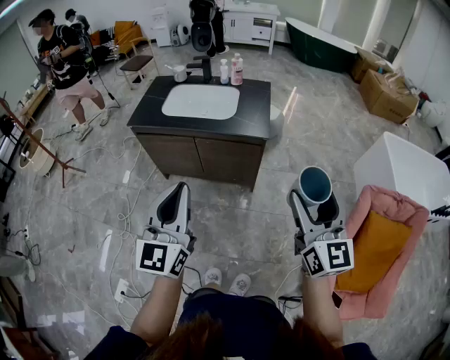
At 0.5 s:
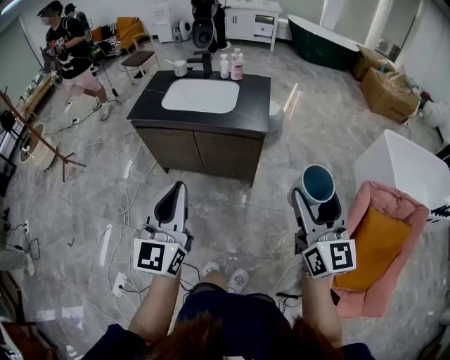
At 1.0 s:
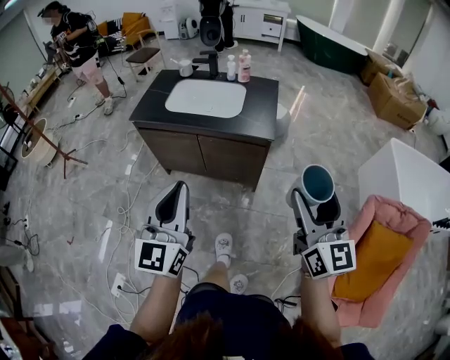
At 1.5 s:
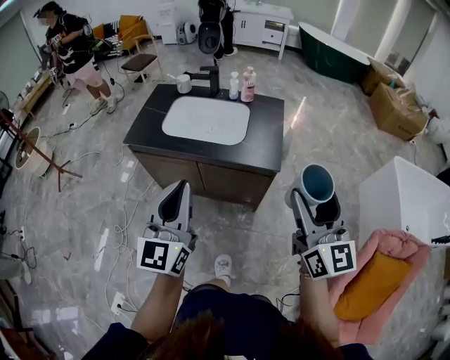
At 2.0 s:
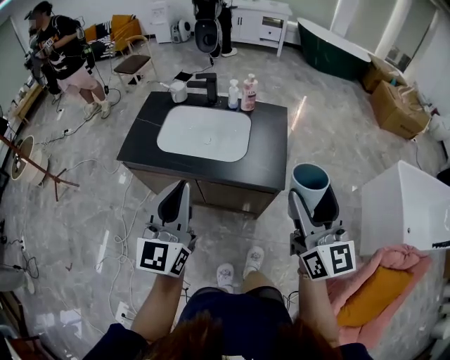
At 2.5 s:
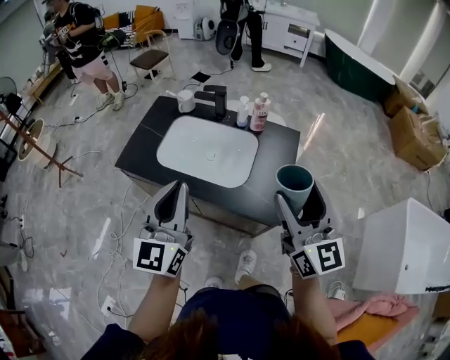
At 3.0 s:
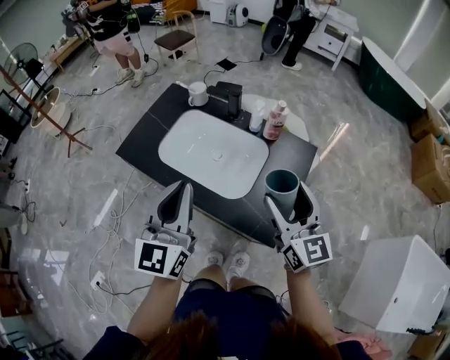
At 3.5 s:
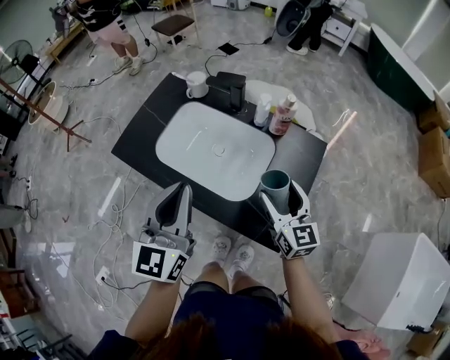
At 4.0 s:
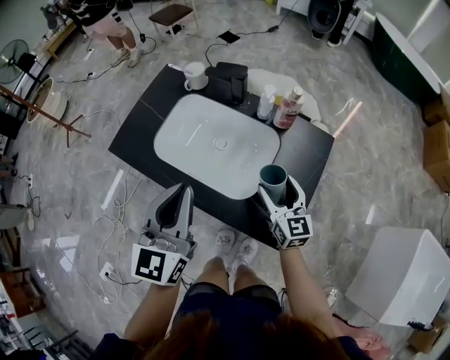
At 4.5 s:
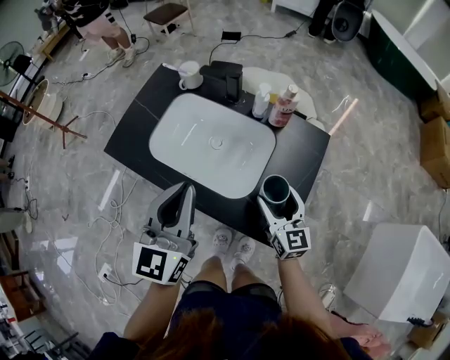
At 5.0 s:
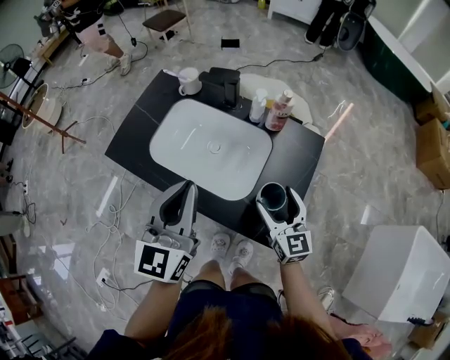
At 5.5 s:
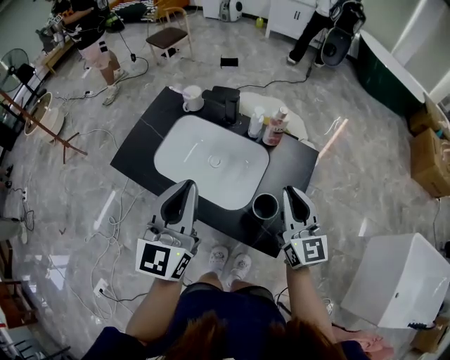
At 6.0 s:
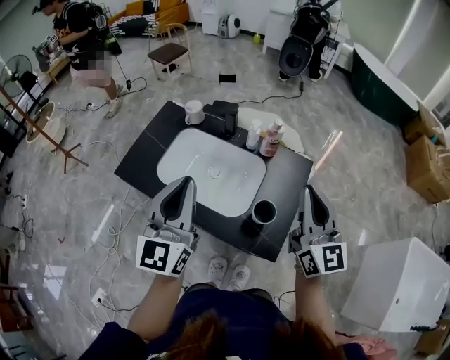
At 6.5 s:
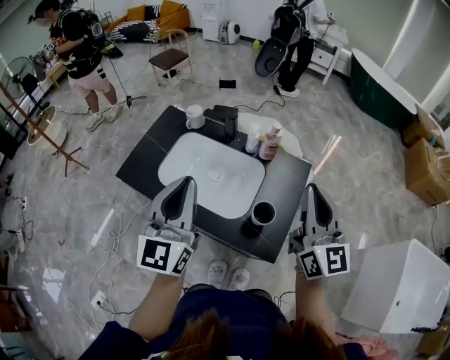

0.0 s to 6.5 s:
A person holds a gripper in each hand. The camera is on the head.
0.0 to 2.0 s: Both grippers travel together forward, about 30 cm.
2.0 to 4.5 s: The right gripper is displaced forward and downward by some 50 cm, and swivels approximately 30 degrees, while the left gripper shifts about 25 cm forward.
4.5 to 6.5 s: The right gripper moves upward, some 30 cm, rotates about 30 degrees, and closes. The left gripper is displaced upward by approximately 10 cm.

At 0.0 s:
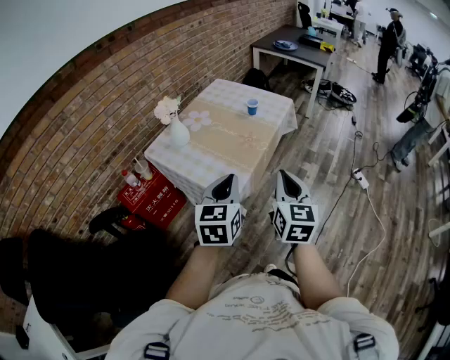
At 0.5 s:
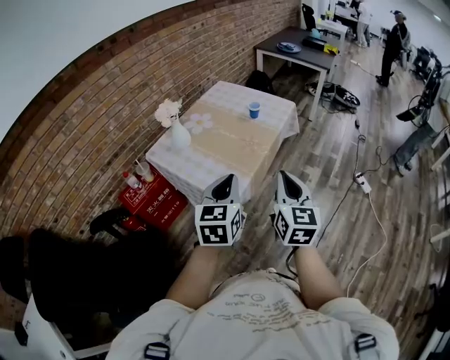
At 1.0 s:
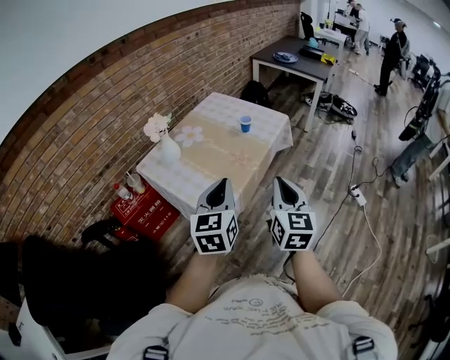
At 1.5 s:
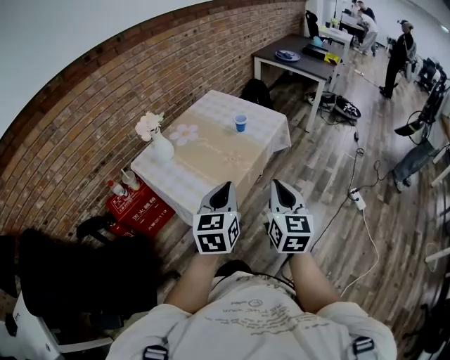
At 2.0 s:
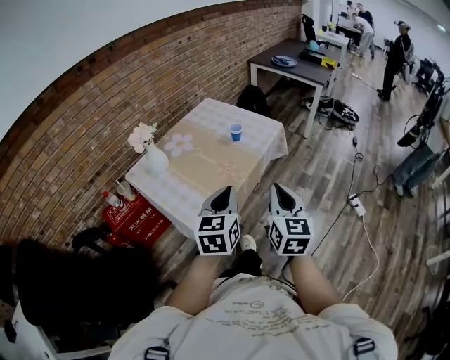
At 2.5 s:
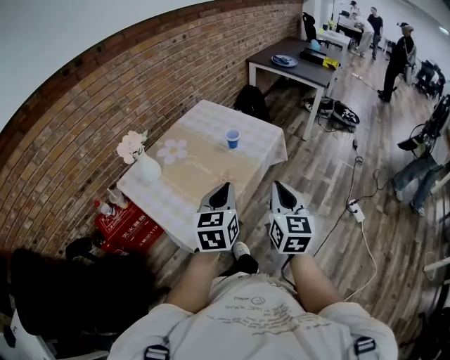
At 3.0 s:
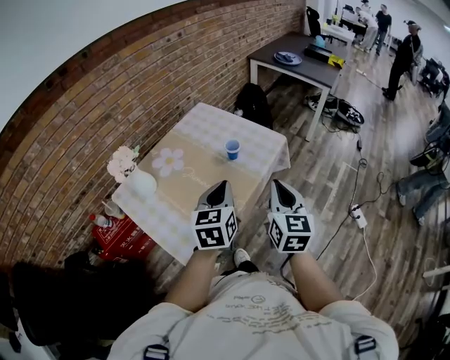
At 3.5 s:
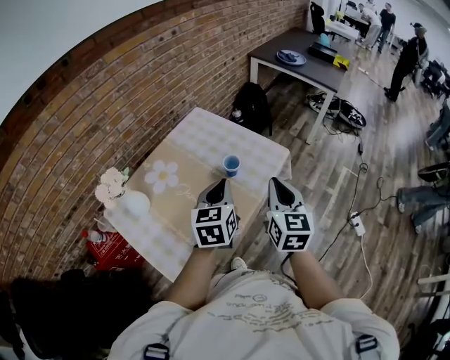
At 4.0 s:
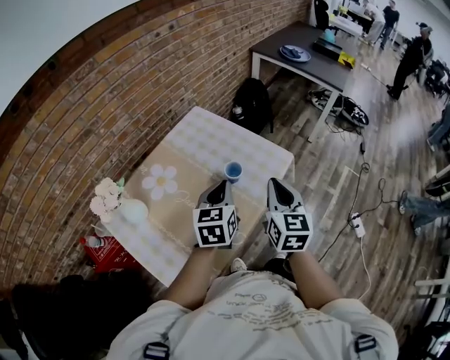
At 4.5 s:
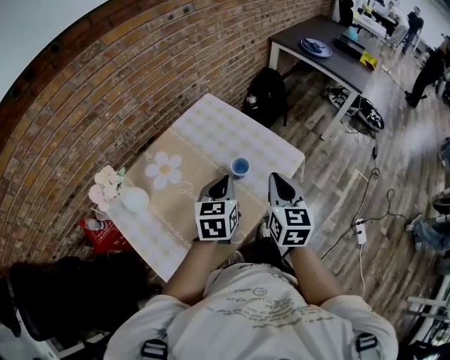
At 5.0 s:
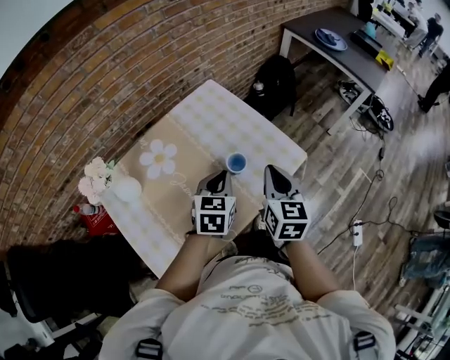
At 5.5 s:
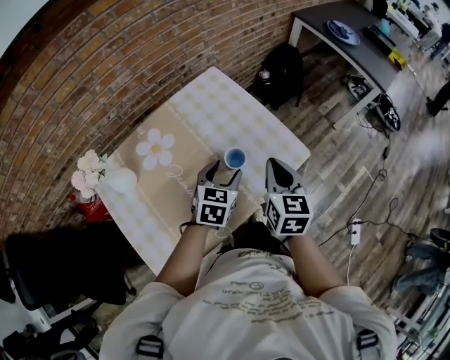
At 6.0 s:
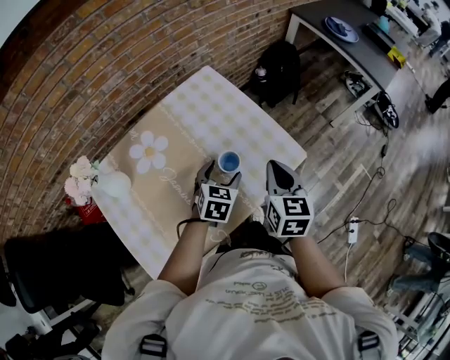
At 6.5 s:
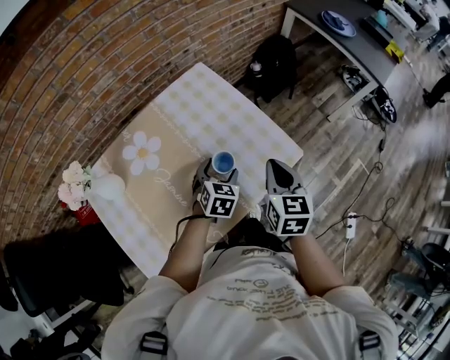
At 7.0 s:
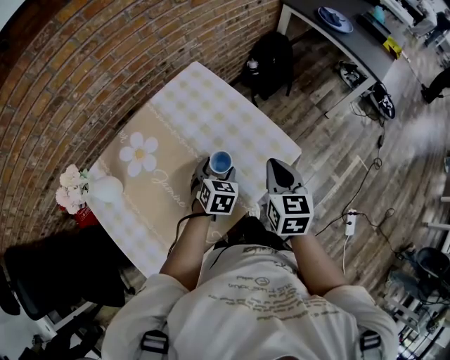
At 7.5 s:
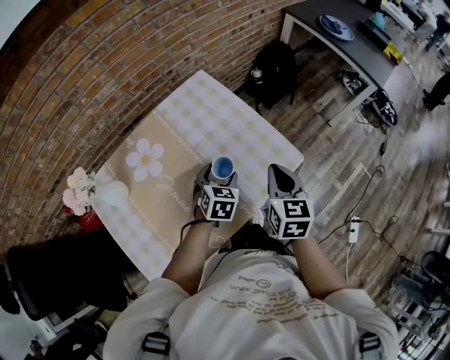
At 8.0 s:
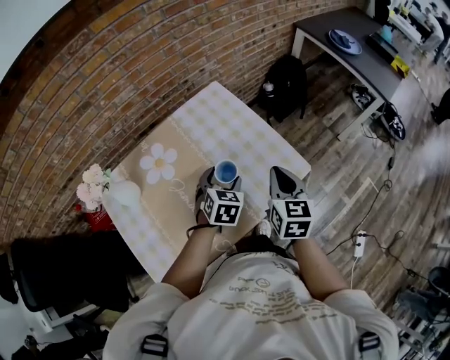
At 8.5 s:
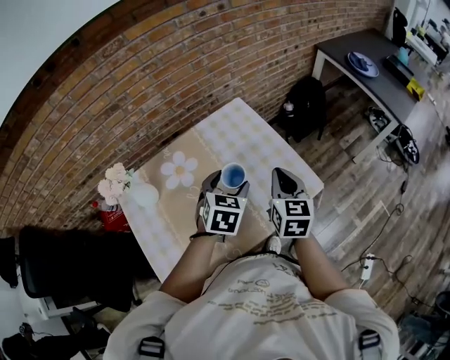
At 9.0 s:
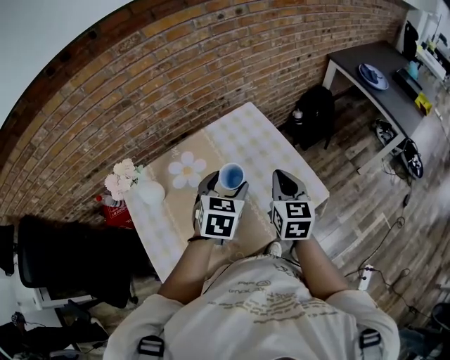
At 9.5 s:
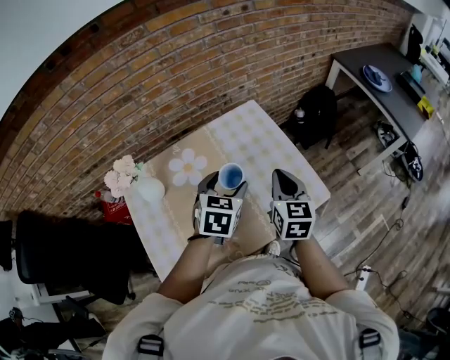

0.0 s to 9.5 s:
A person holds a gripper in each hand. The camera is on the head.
0.0 to 2.0 s: The grippers both shift forward and to the right by some 15 cm.
2.0 to 4.0 s: The grippers both shift forward by approximately 40 cm.
4.0 to 5.5 s: The left gripper is displaced downward and forward by some 15 cm, and opens. Meanwhile the right gripper heads forward and downward, covering some 15 cm.
5.5 to 7.5 s: The left gripper moves downward, about 5 cm, while the right gripper changes place by about 5 cm.
7.5 to 9.5 s: The left gripper heads upward and to the left, covering about 20 cm. Meanwhile the right gripper heads to the left and upward, covering approximately 10 cm.

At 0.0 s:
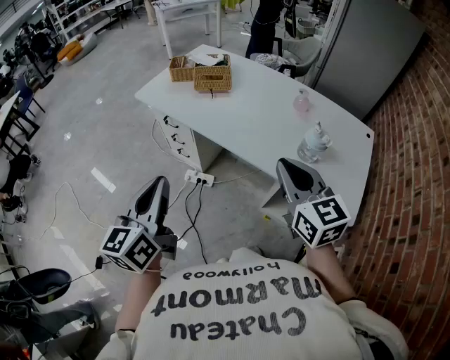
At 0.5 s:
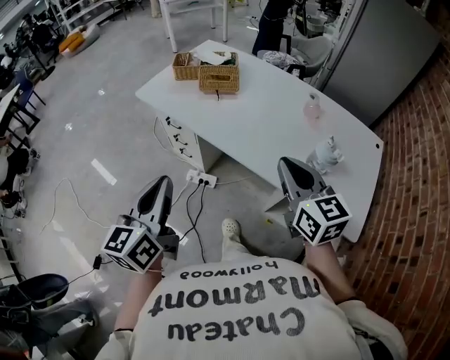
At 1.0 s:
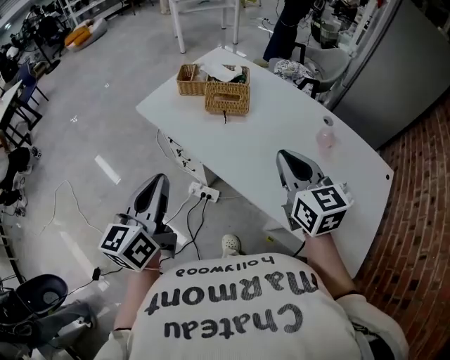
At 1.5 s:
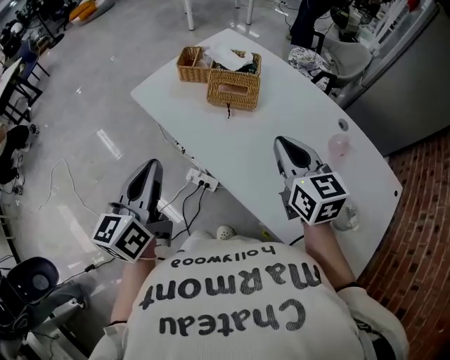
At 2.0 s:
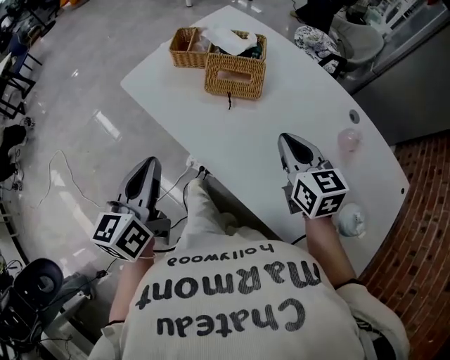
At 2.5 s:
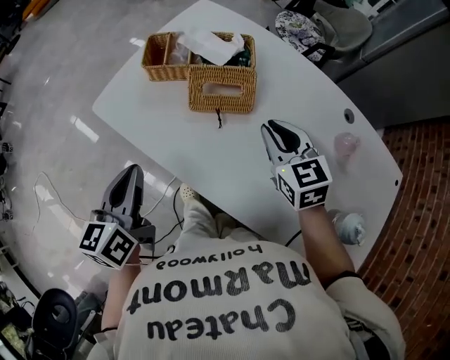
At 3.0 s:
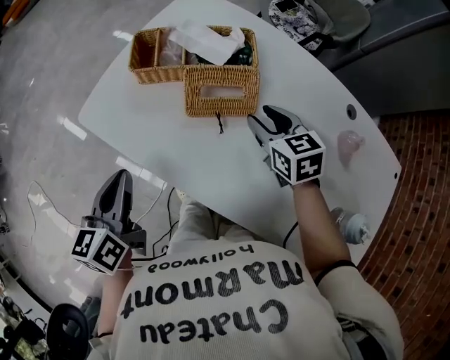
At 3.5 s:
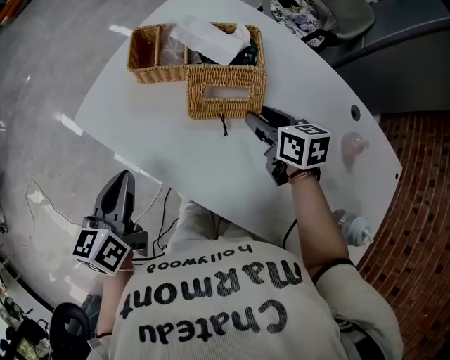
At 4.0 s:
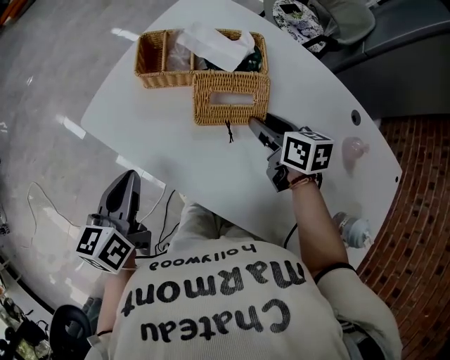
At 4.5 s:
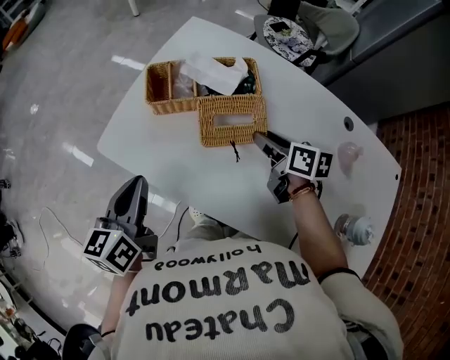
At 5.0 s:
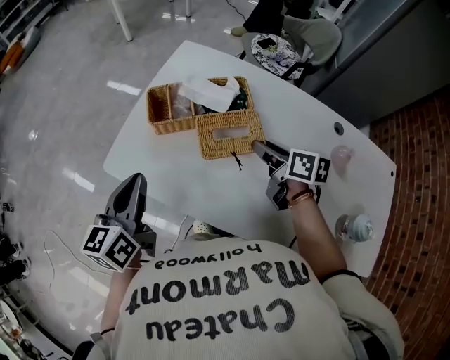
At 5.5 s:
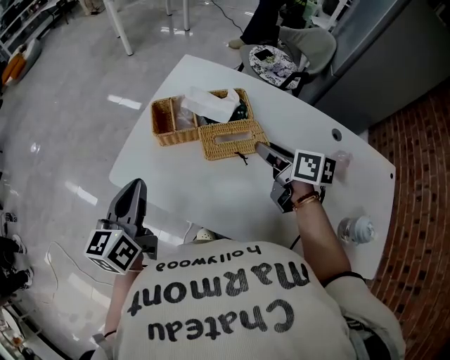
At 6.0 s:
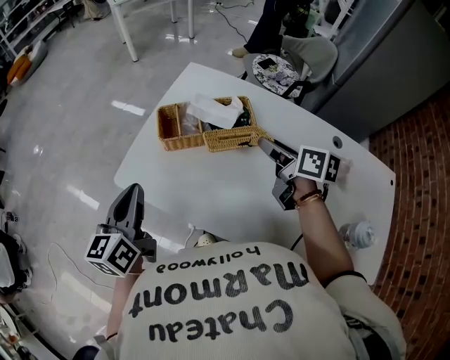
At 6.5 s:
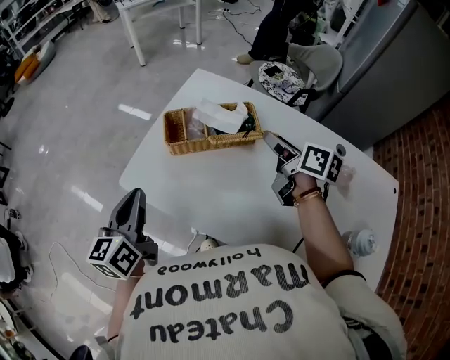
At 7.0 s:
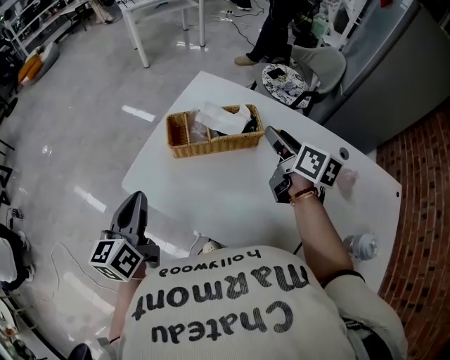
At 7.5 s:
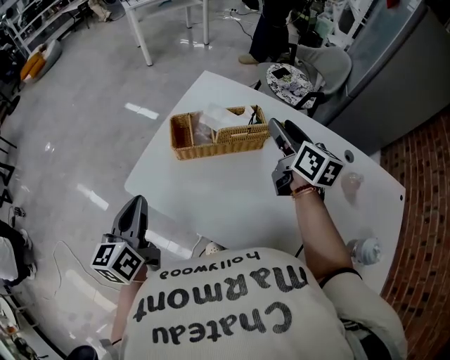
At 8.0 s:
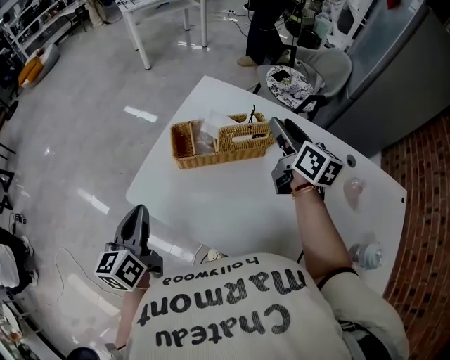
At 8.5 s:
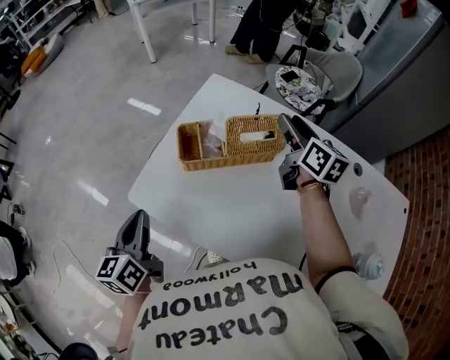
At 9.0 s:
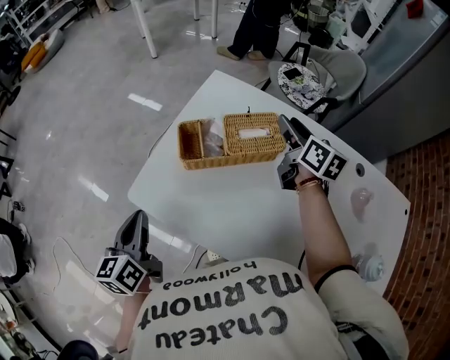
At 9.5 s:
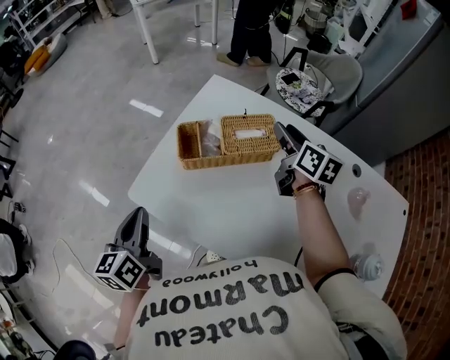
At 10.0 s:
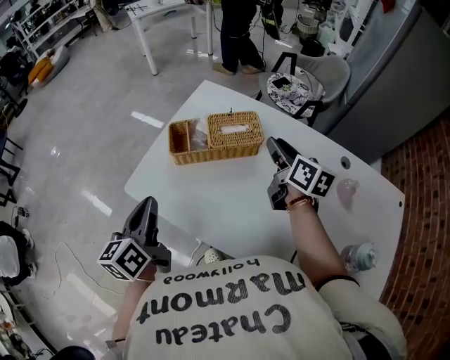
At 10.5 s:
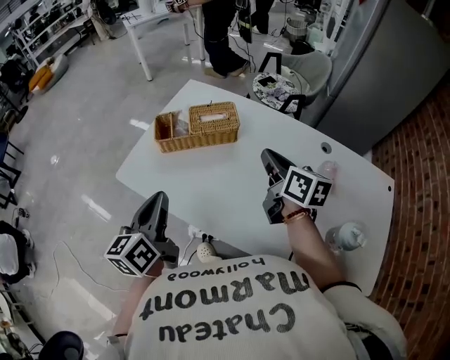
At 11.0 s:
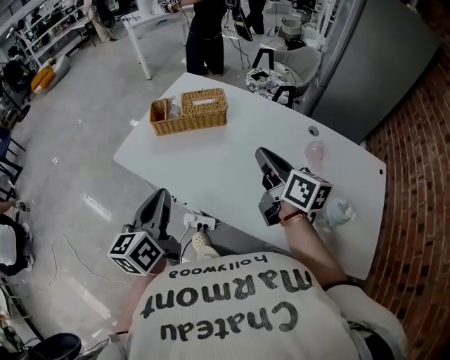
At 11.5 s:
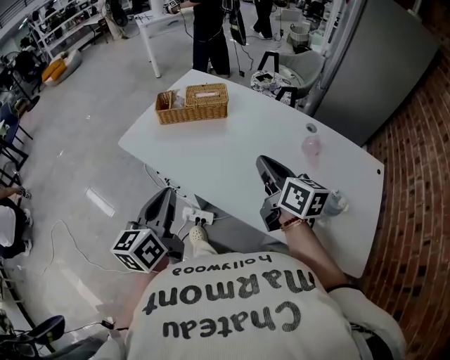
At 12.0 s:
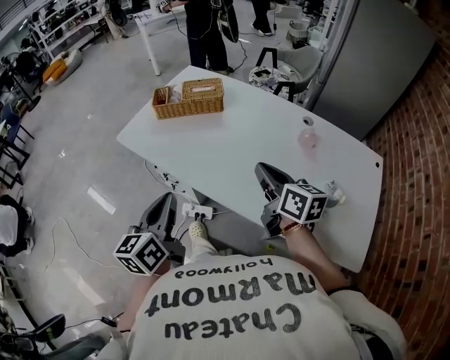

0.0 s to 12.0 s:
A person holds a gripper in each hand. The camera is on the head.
0.0 to 2.0 s: Both grippers move forward, about 35 cm.
2.0 to 4.0 s: The grippers both shift forward and downward by approximately 20 cm. The right gripper rotates roughly 30 degrees, and opens its fingers.
4.0 to 6.0 s: The left gripper shifts approximately 10 cm upward and forward. The right gripper shifts approximately 15 cm upward, and changes its angle by some 20 degrees.
6.0 to 8.0 s: The right gripper goes roughly 10 cm forward, and swivels some 20 degrees.
8.0 to 10.0 s: The left gripper travels to the right by some 5 cm; the right gripper shifts some 5 cm backward.
10.0 to 12.0 s: The left gripper travels backward and to the right by about 35 cm. The right gripper heads backward, covering approximately 35 cm, and closes up.
